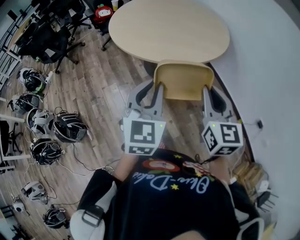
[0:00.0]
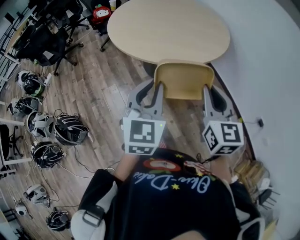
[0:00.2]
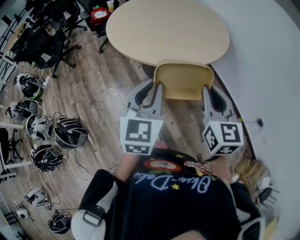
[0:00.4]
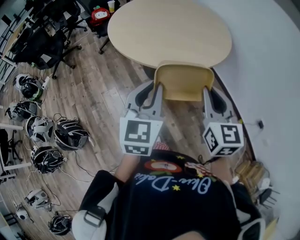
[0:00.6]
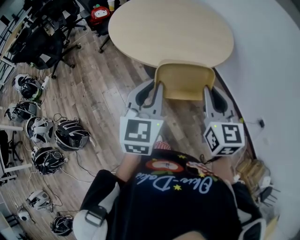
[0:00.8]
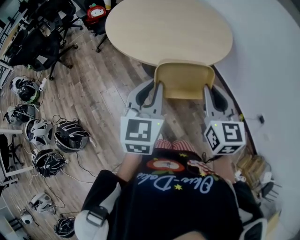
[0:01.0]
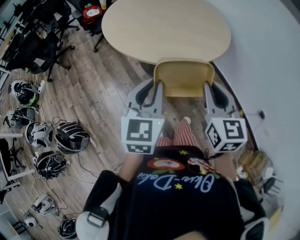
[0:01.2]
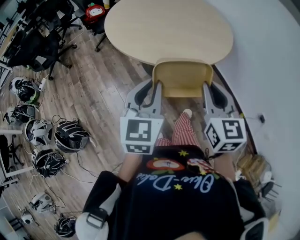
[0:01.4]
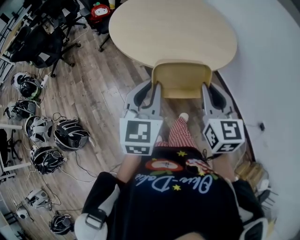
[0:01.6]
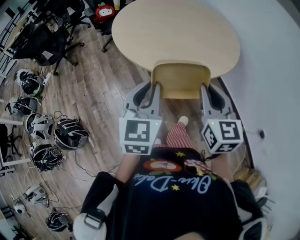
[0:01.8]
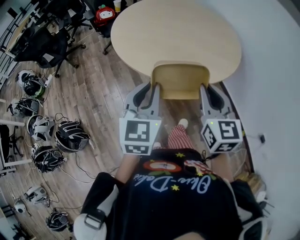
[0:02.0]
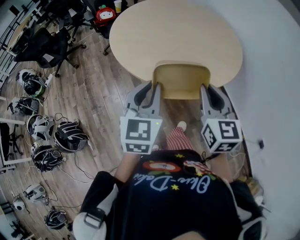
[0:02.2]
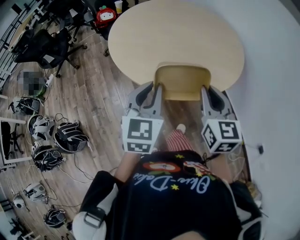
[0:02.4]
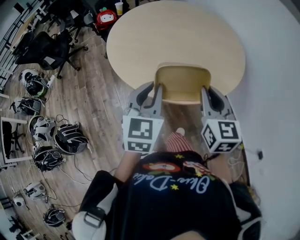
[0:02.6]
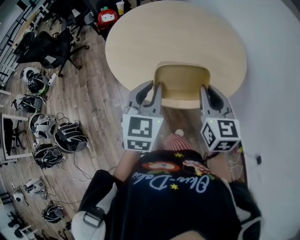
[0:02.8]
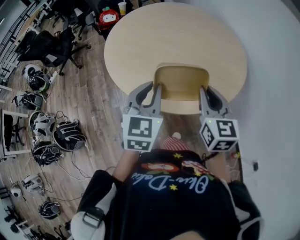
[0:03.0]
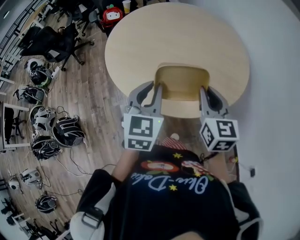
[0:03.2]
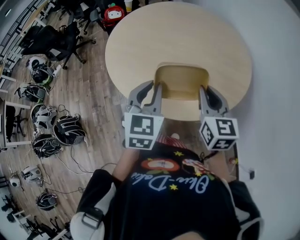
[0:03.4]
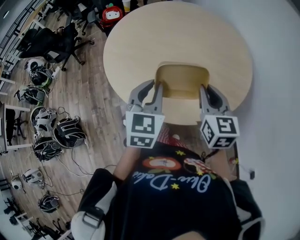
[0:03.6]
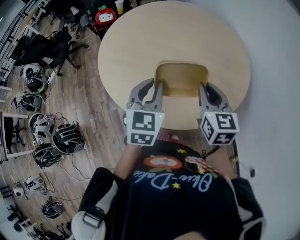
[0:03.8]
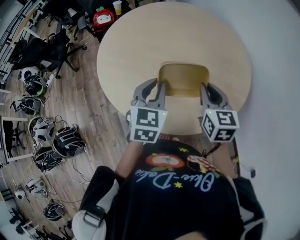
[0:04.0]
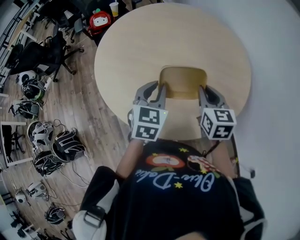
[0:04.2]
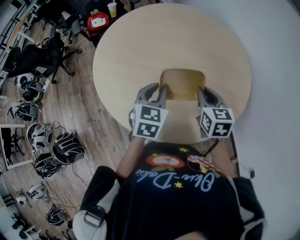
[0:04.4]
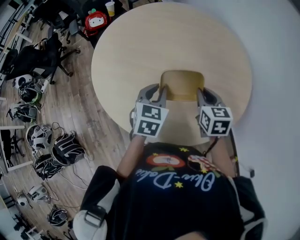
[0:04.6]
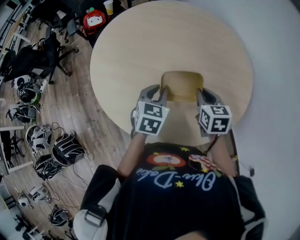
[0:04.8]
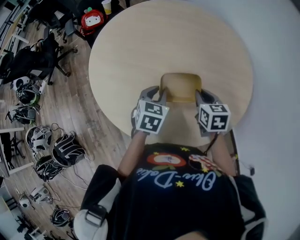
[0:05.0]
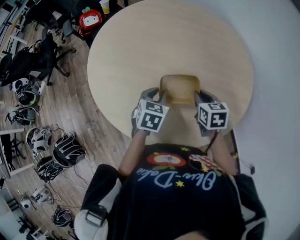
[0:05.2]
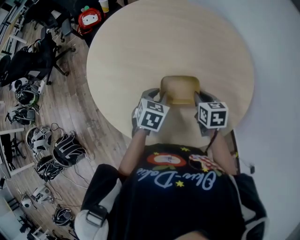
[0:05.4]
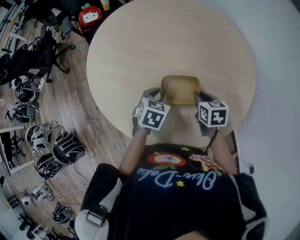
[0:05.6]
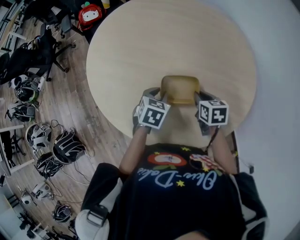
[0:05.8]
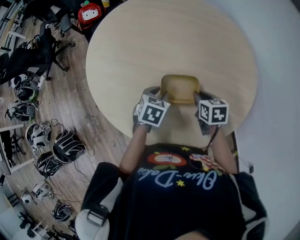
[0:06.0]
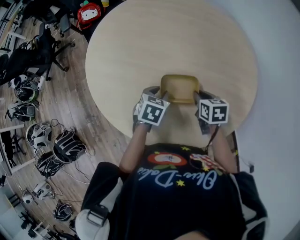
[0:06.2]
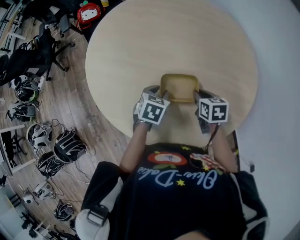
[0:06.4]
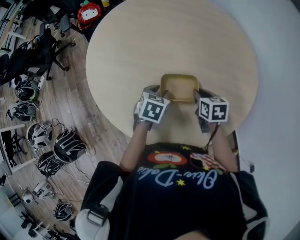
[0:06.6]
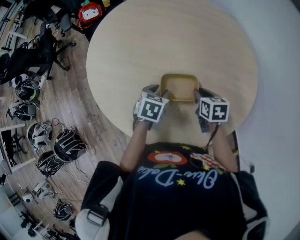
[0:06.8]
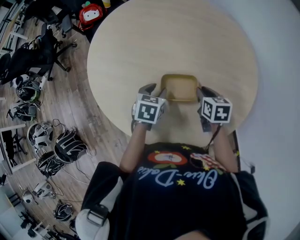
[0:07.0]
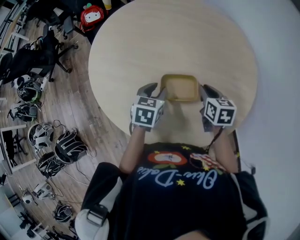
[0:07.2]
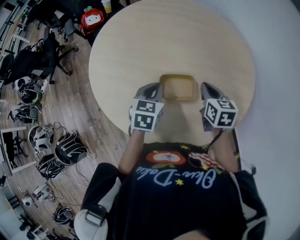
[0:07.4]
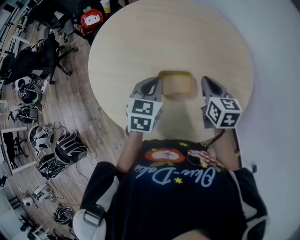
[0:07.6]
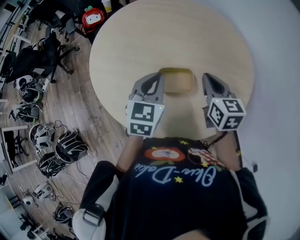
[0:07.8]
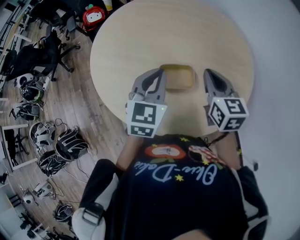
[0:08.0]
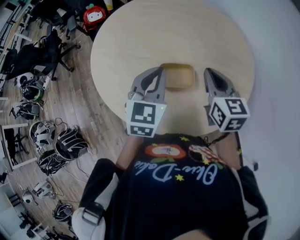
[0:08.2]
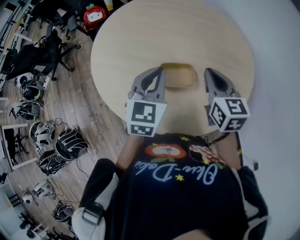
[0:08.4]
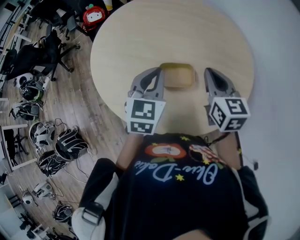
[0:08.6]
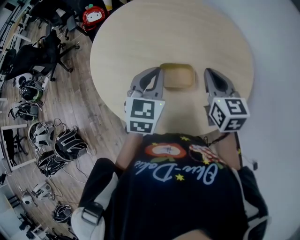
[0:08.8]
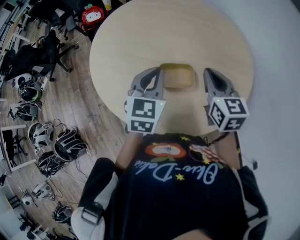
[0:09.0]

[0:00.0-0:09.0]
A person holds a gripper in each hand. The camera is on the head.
0:00.0 to 0:01.6: Both grippers travel together forward and to the left, about 10 cm.
0:01.6 to 0:03.0: The grippers both shift forward and to the right by roughly 25 cm.
0:03.0 to 0:04.4: The grippers both shift forward and downward by about 20 cm.
0:04.4 to 0:06.0: Both grippers travel together downward, some 15 cm. The right gripper rotates about 20 degrees, while the left gripper rotates approximately 20 degrees.
0:06.0 to 0:07.6: The two grippers go some 15 cm upward. The left gripper turns by about 20 degrees, and closes. Meanwhile the right gripper changes its angle by about 20 degrees.
0:07.6 to 0:09.0: The grippers both shift upward by approximately 5 cm.

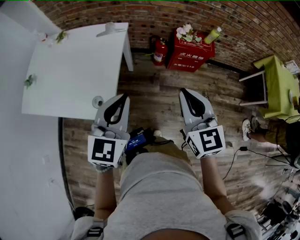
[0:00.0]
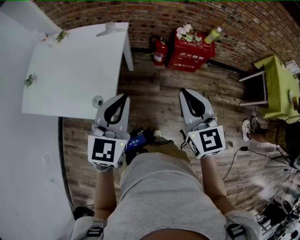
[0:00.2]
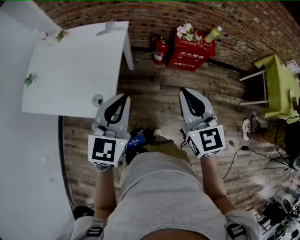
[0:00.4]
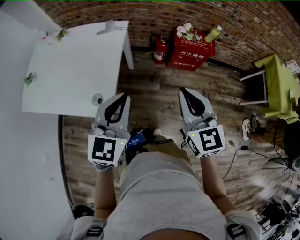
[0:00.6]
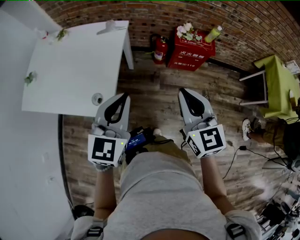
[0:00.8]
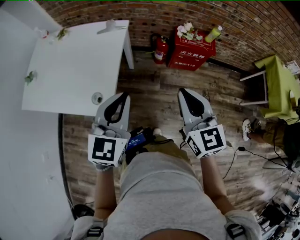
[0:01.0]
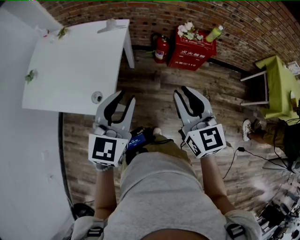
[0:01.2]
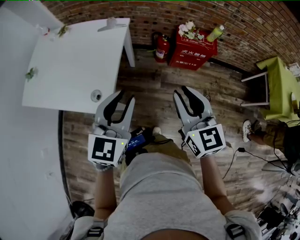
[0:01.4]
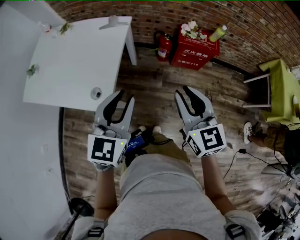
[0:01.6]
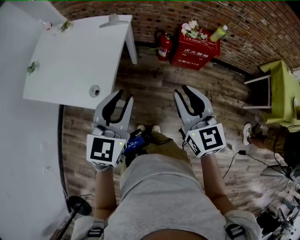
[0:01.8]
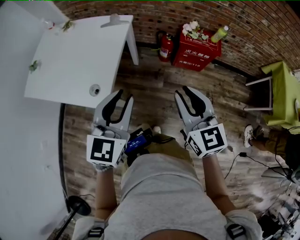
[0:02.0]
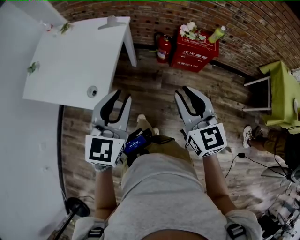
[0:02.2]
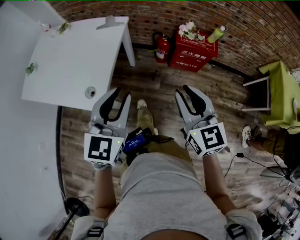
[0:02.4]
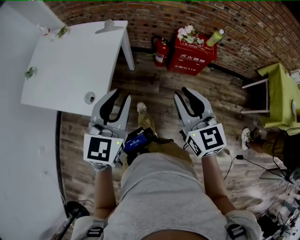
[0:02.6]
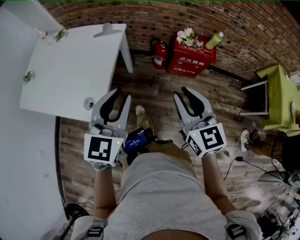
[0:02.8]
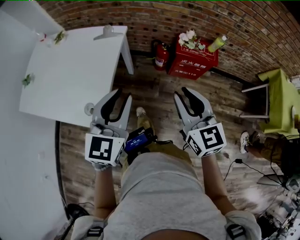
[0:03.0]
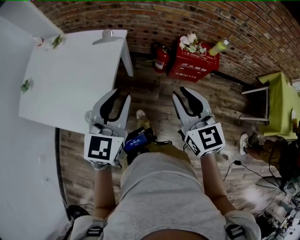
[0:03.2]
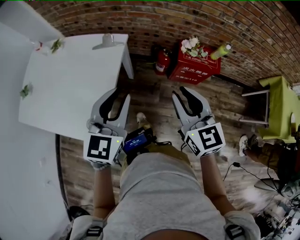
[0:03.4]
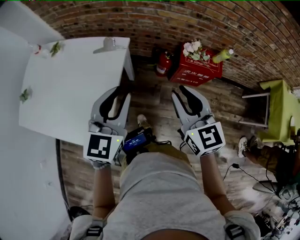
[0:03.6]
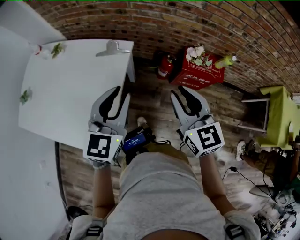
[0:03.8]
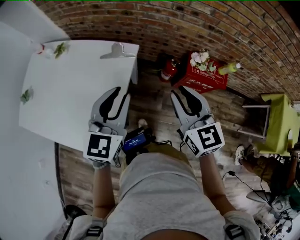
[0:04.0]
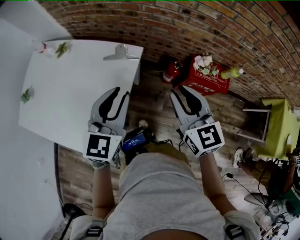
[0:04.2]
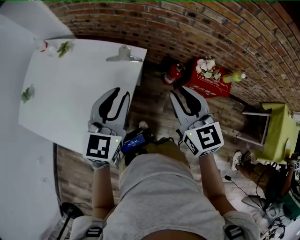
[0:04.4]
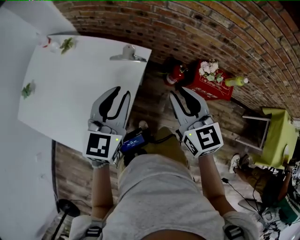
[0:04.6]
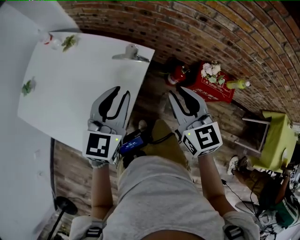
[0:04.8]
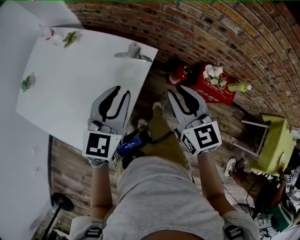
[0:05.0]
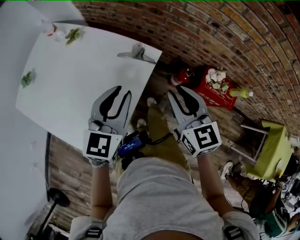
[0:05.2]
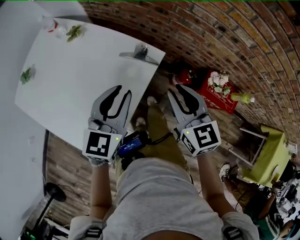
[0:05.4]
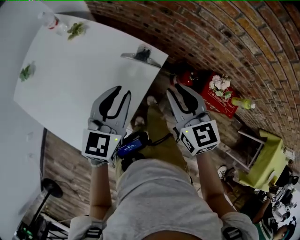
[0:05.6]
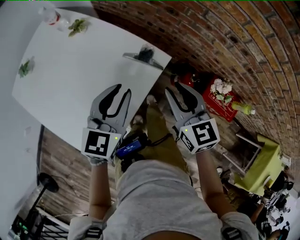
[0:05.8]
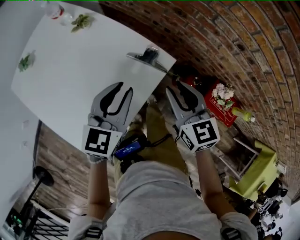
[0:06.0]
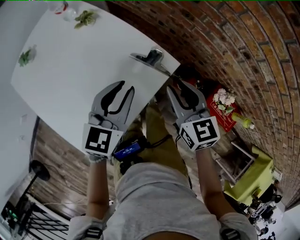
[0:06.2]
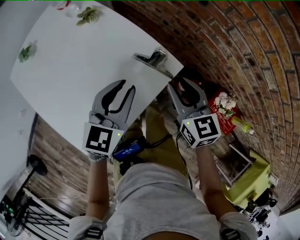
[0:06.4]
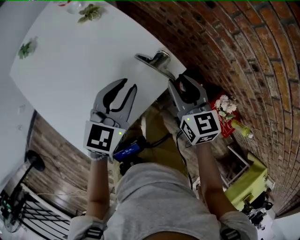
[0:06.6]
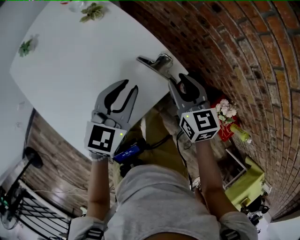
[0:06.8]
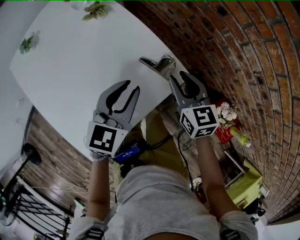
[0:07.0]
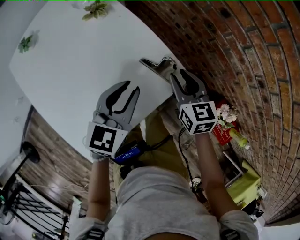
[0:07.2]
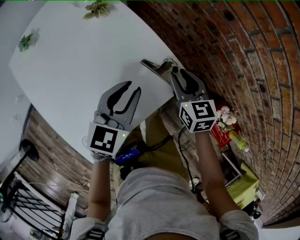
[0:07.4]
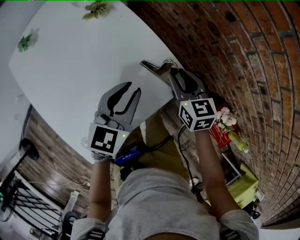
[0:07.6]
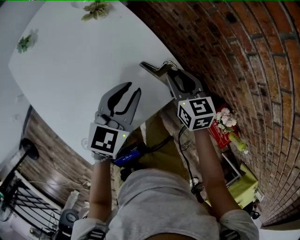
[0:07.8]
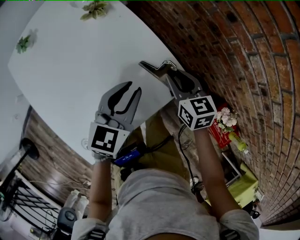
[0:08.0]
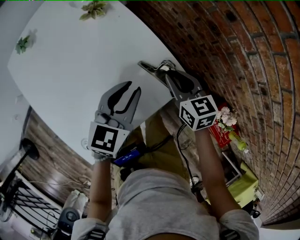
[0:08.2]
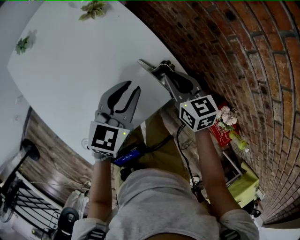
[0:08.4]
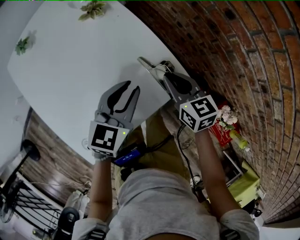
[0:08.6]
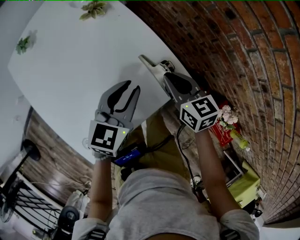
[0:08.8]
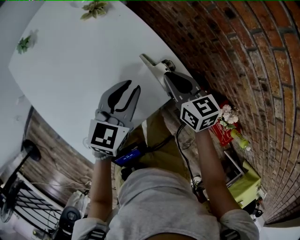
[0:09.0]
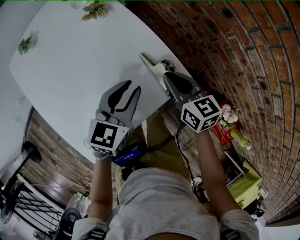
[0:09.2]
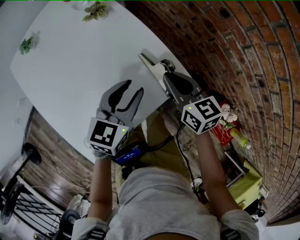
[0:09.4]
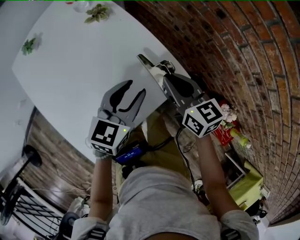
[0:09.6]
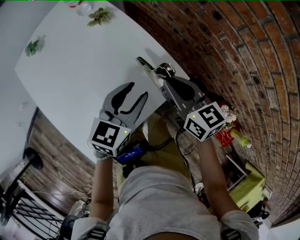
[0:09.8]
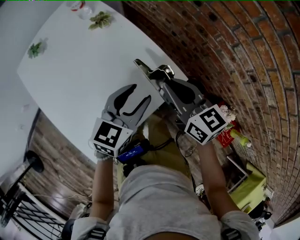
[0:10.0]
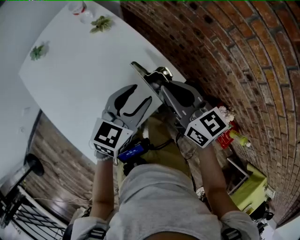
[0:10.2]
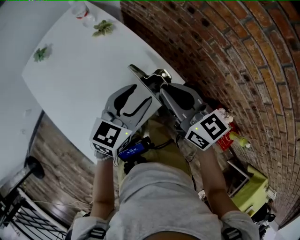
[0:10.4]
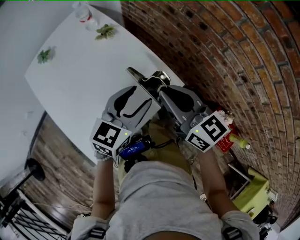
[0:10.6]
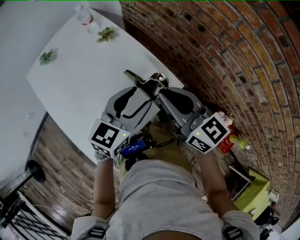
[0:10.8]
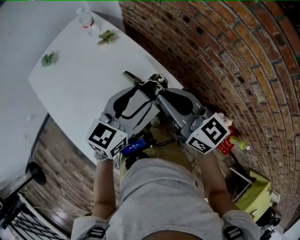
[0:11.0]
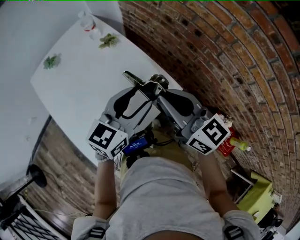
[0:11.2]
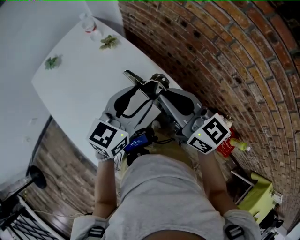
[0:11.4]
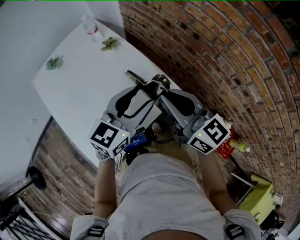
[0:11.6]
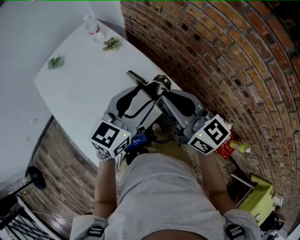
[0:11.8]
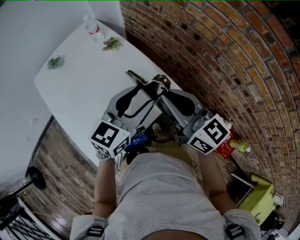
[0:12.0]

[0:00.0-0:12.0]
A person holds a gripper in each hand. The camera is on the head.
0:00.0 to 0:01.6: The left gripper opens up, while the right gripper opens up.
0:01.6 to 0:03.0: Both grippers travel together forward, roughly 5 cm.
0:03.0 to 0:04.4: The two grippers go approximately 25 cm forward and to the left.
0:04.4 to 0:06.0: The right gripper shifts some 15 cm forward, downward and to the left, and swivels about 20 degrees. The left gripper moves forward and downward, approximately 10 cm.
0:06.0 to 0:07.6: The right gripper moves forward and downward, some 15 cm. Meanwhile the left gripper heads downward and forward, covering about 10 cm.
0:07.6 to 0:09.0: The right gripper closes its fingers.
0:09.0 to 0:10.4: The left gripper is displaced upward by some 5 cm, and opens up. Meanwhile the right gripper goes some 15 cm upward.
0:10.4 to 0:12.0: Both grippers travel together upward, roughly 5 cm.

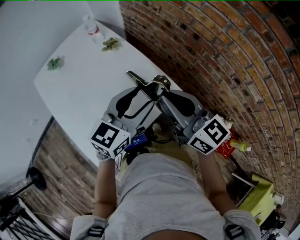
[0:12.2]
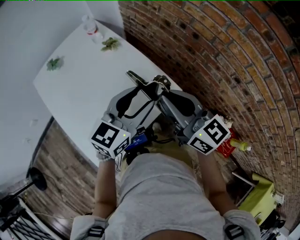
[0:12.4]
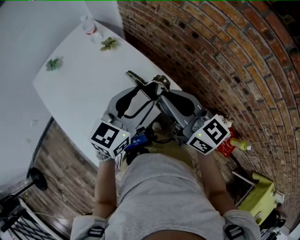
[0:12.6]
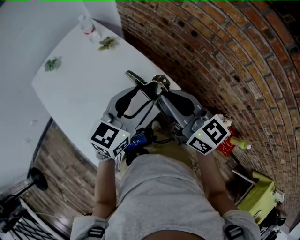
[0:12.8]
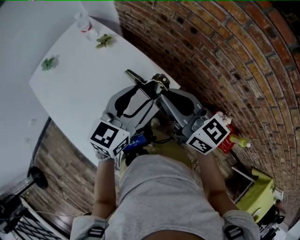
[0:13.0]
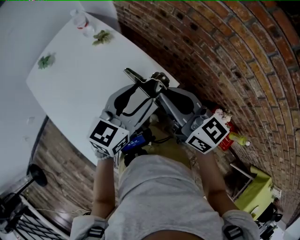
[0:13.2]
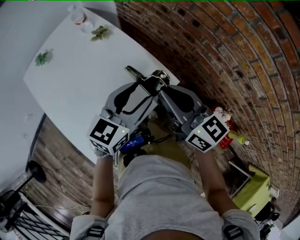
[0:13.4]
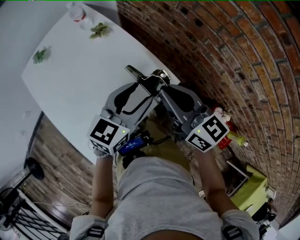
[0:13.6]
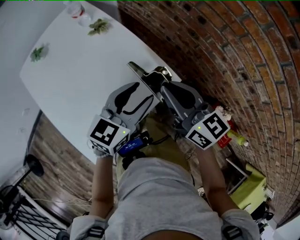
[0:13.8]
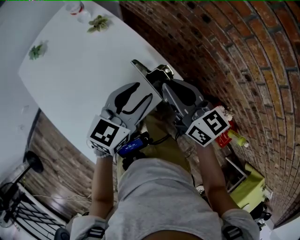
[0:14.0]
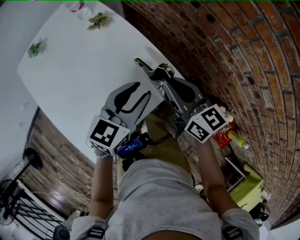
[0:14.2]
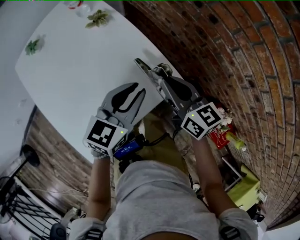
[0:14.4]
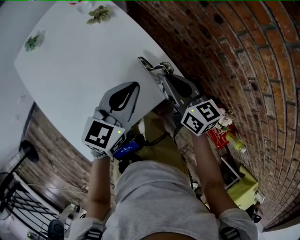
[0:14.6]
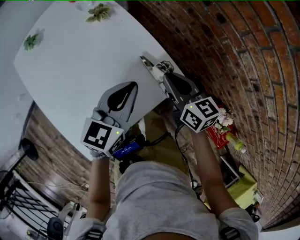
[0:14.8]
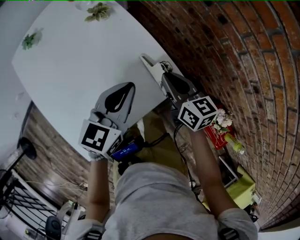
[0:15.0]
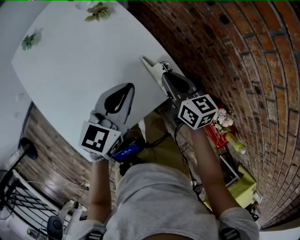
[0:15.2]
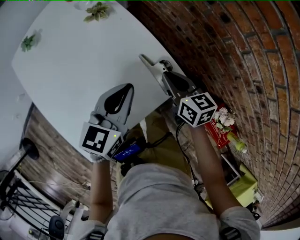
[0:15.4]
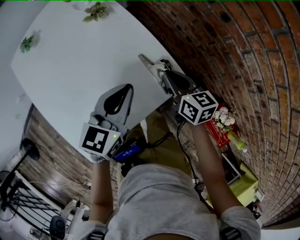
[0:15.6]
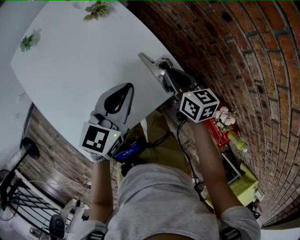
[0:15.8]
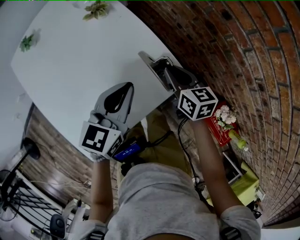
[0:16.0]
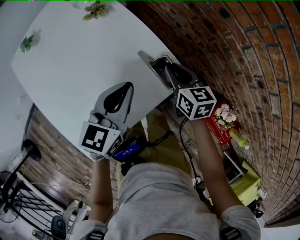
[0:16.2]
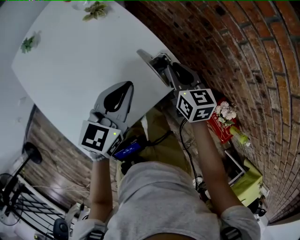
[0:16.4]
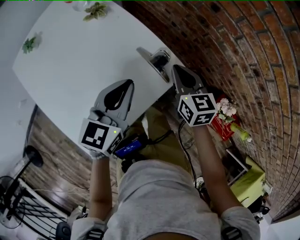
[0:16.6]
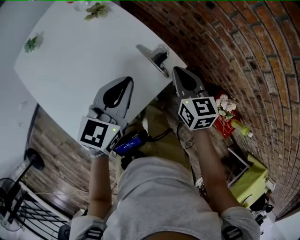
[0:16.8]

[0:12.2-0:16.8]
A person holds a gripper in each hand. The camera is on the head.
0:12.2 to 0:13.8: Both grippers travel together downward, approximately 5 cm.
0:13.8 to 0:15.2: The left gripper ends up roughly 5 cm from where it was, and closes up; the right gripper heads downward, covering approximately 15 cm.
0:15.2 to 0:16.8: The right gripper shifts by roughly 5 cm, and turns by about 20 degrees.
